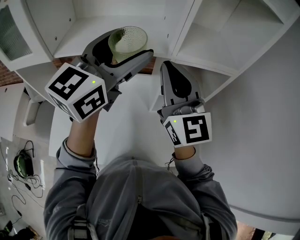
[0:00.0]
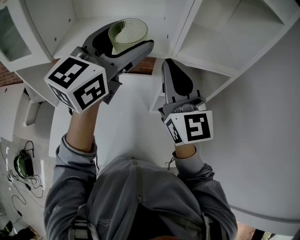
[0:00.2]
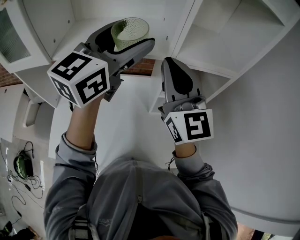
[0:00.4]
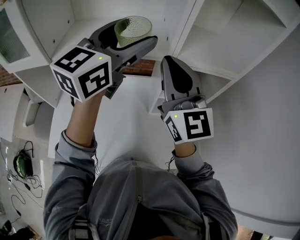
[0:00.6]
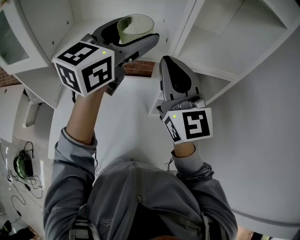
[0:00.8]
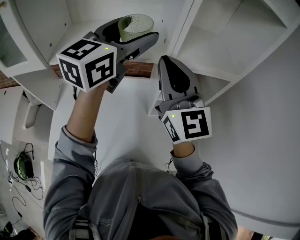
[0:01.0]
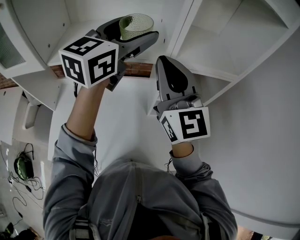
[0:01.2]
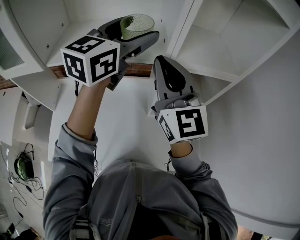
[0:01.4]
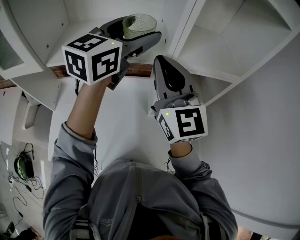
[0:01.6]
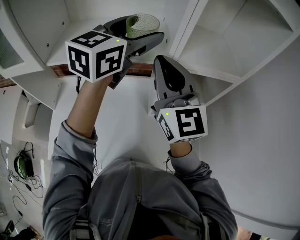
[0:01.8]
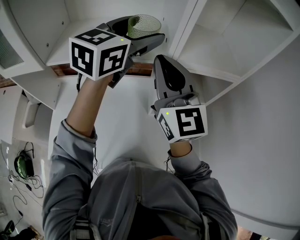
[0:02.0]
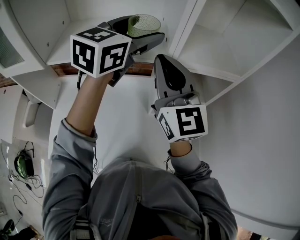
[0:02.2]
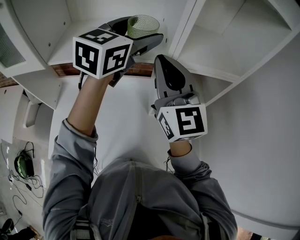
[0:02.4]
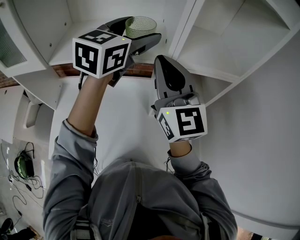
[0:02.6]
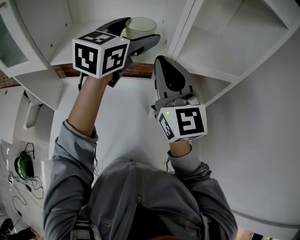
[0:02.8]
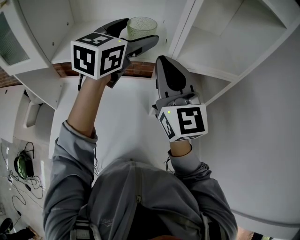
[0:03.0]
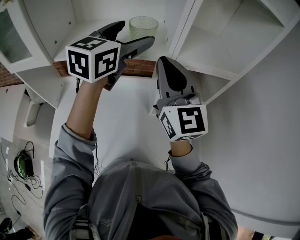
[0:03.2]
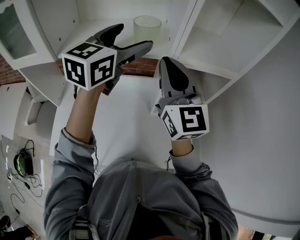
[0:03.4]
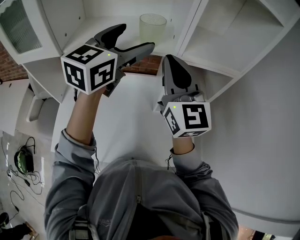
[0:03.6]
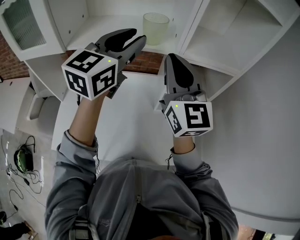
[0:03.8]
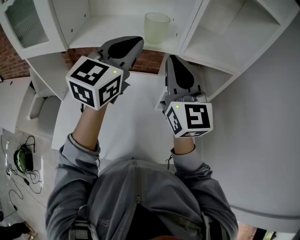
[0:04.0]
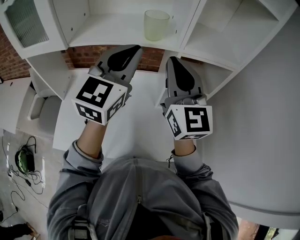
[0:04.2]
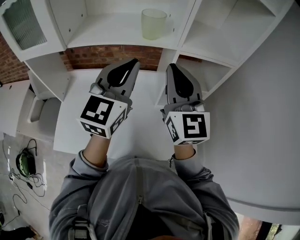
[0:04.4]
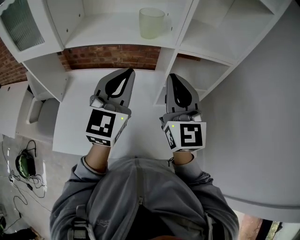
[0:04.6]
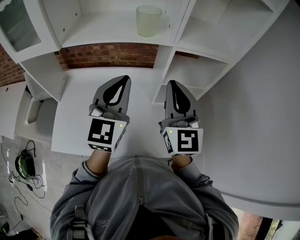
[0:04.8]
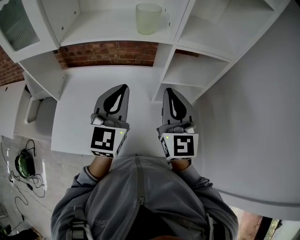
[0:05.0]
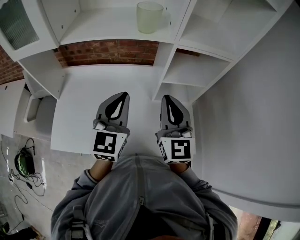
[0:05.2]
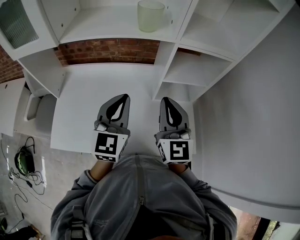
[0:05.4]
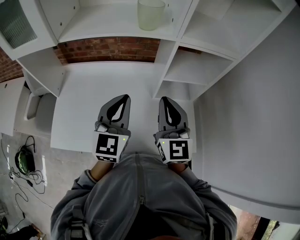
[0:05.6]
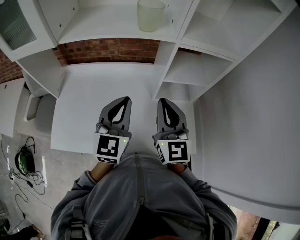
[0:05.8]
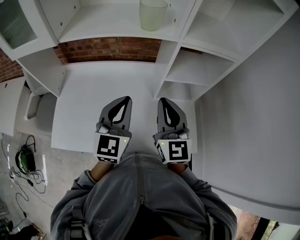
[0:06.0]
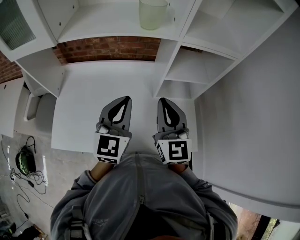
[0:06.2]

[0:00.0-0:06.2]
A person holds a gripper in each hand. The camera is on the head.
0:00.0 to 0:01.6: The left gripper is displaced forward by roughly 10 cm. Meanwhile the right gripper moves roughly 5 cm.
0:01.6 to 0:03.2: The grippers stay close to where they were, moving slightly.
0:03.2 to 0:04.6: The left gripper shifts roughly 20 cm backward and downward, and closes up. The right gripper moves backward, approximately 10 cm.
0:04.6 to 0:06.2: Both grippers move downward, some 10 cm.

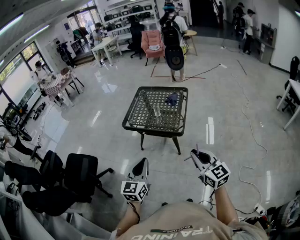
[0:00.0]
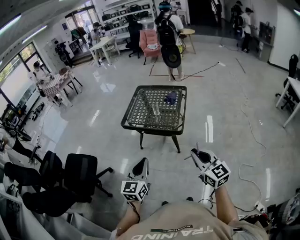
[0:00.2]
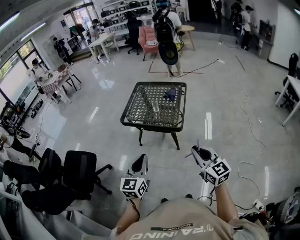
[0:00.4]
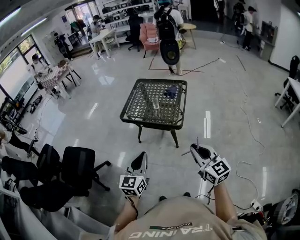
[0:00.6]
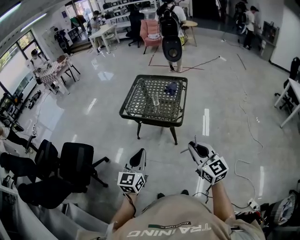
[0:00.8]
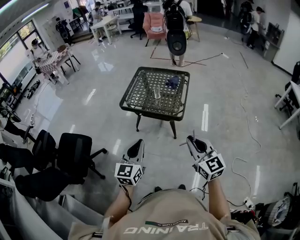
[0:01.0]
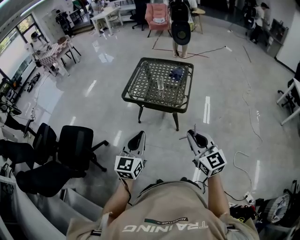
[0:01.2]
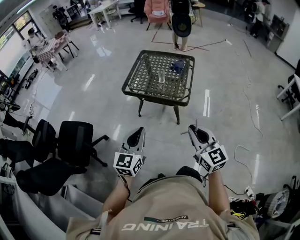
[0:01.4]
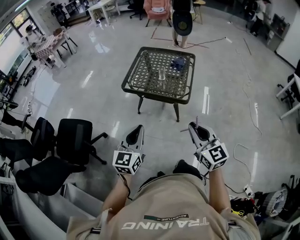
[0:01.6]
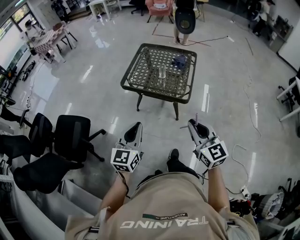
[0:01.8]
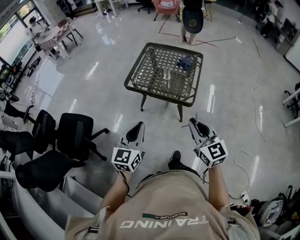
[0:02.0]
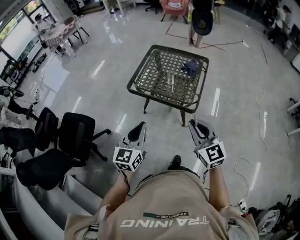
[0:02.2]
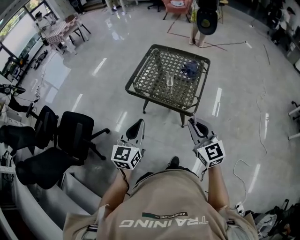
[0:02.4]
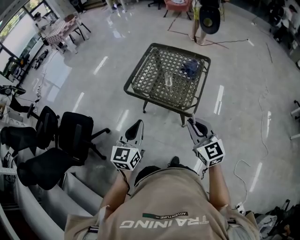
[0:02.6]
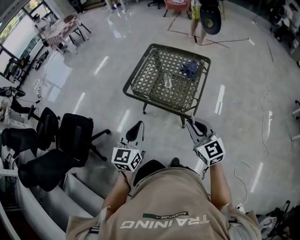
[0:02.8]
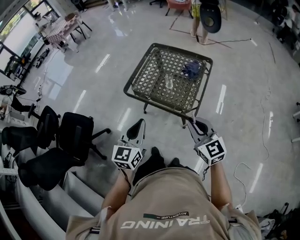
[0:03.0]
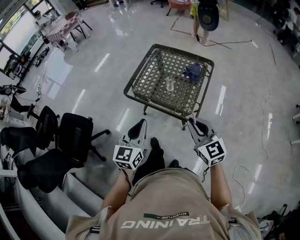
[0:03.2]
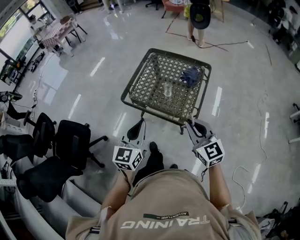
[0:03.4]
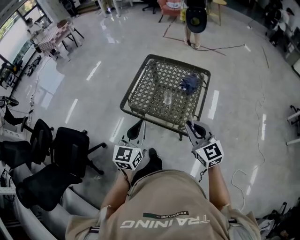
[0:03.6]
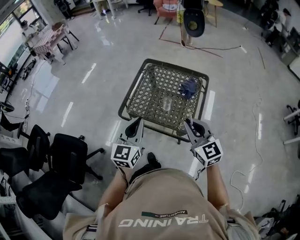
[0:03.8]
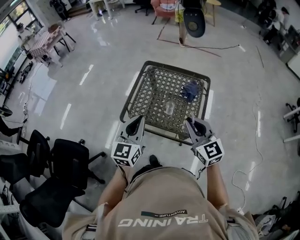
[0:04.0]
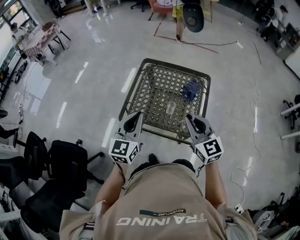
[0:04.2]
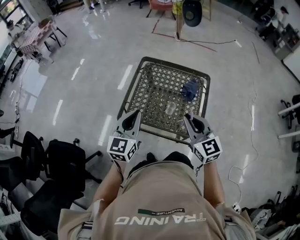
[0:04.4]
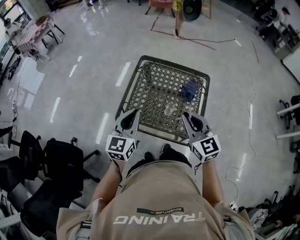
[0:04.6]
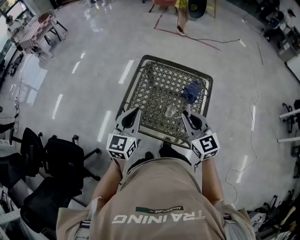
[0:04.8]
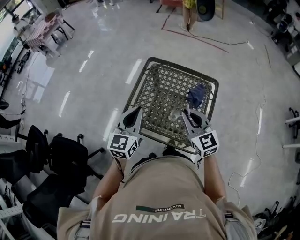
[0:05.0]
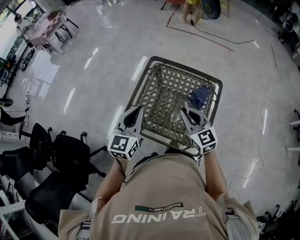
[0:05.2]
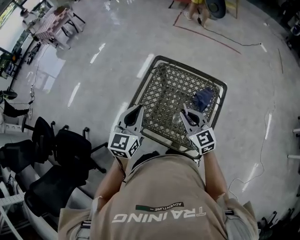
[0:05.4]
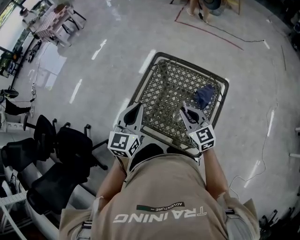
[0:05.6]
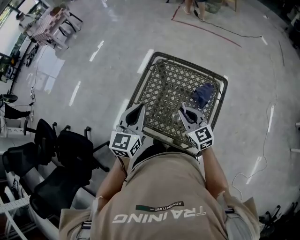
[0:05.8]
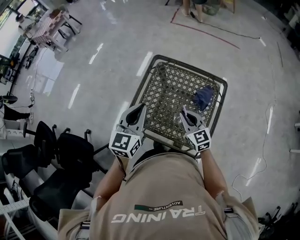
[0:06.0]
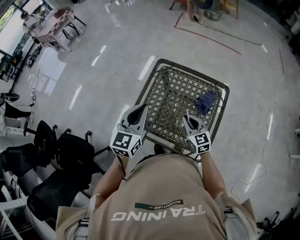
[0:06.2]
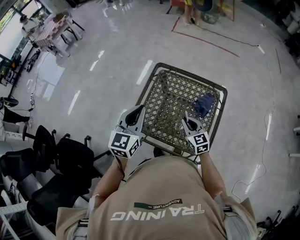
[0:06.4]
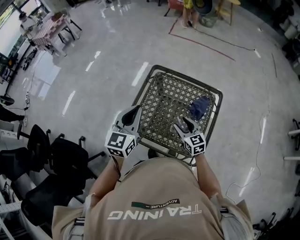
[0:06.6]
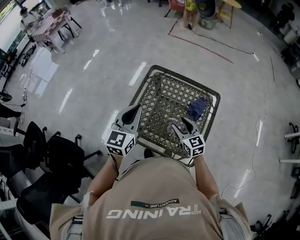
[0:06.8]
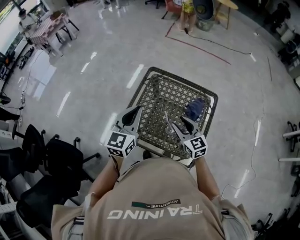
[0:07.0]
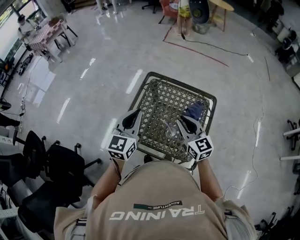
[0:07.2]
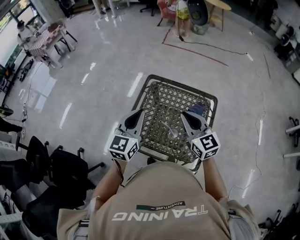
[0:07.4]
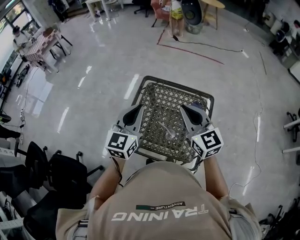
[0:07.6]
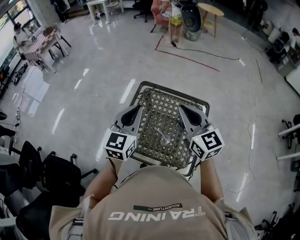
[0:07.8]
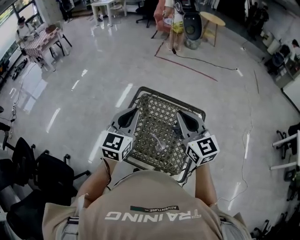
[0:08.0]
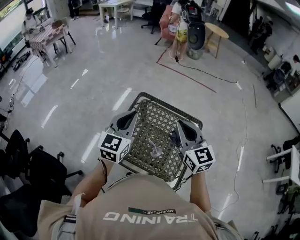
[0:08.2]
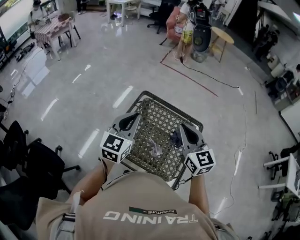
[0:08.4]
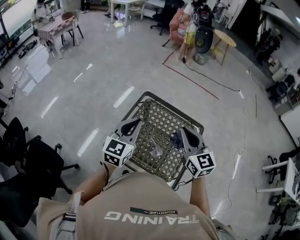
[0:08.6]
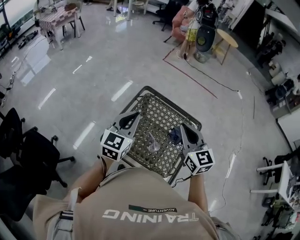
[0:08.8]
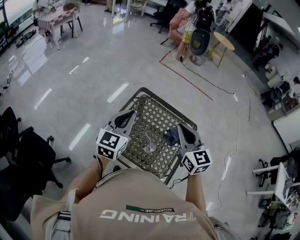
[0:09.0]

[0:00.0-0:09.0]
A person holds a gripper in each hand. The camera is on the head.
0:00.0 to 0:01.6: The grippers both shift to the left by approximately 10 cm.
0:01.6 to 0:03.0: The left gripper goes roughly 20 cm forward and to the right. The right gripper heads forward, covering about 20 cm.
0:03.0 to 0:04.4: Both grippers travel together forward, some 25 cm.
0:04.4 to 0:06.0: The right gripper shifts roughly 20 cm forward and downward, while the left gripper is displaced forward by approximately 10 cm.
0:06.0 to 0:07.6: The left gripper moves upward, about 5 cm. Meanwhile the right gripper travels upward by approximately 20 cm, and opens and closes again.
0:07.6 to 0:09.0: The grippers make only small movements.

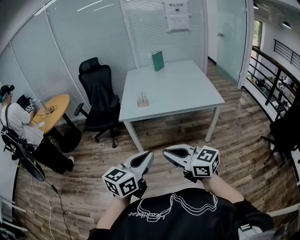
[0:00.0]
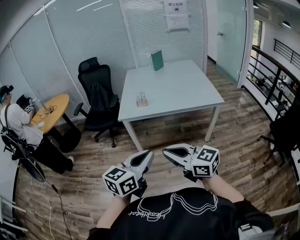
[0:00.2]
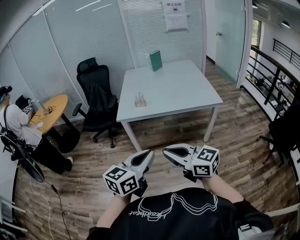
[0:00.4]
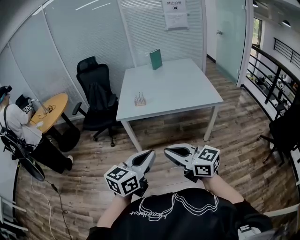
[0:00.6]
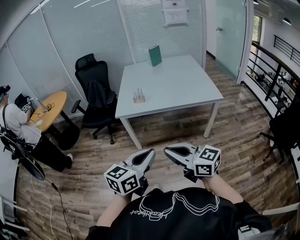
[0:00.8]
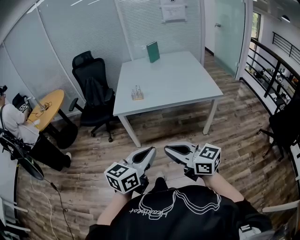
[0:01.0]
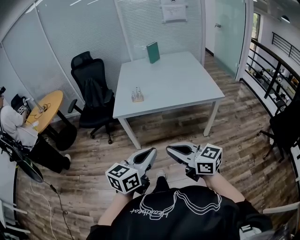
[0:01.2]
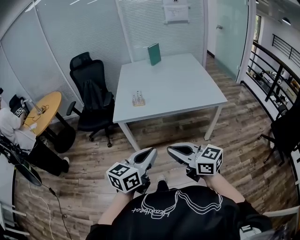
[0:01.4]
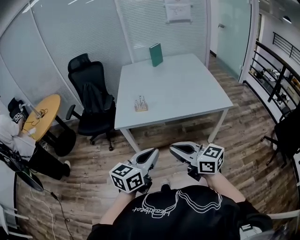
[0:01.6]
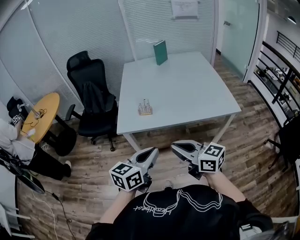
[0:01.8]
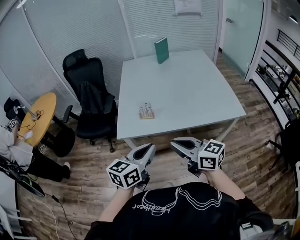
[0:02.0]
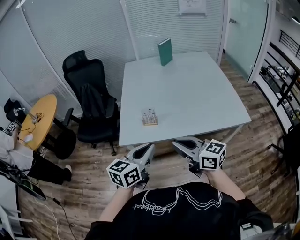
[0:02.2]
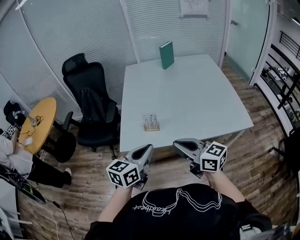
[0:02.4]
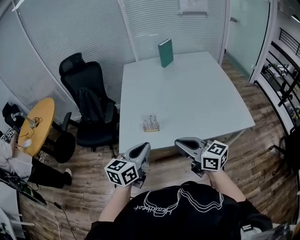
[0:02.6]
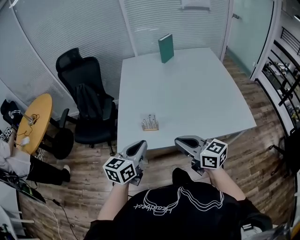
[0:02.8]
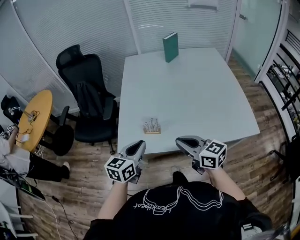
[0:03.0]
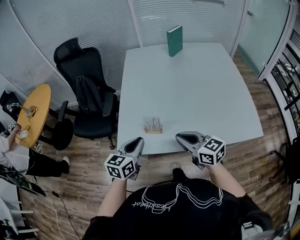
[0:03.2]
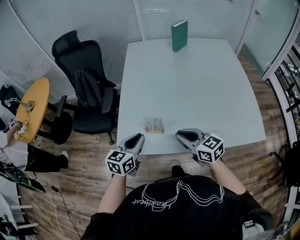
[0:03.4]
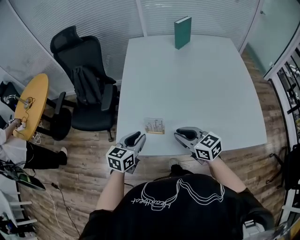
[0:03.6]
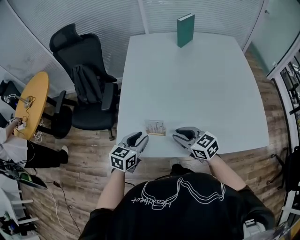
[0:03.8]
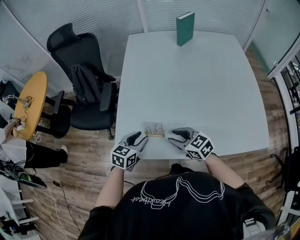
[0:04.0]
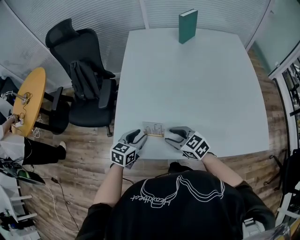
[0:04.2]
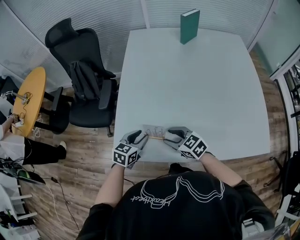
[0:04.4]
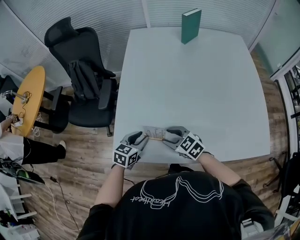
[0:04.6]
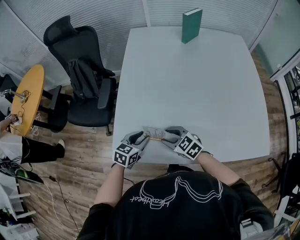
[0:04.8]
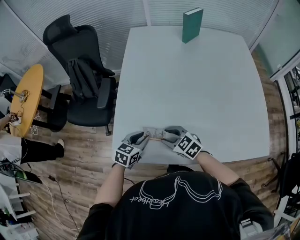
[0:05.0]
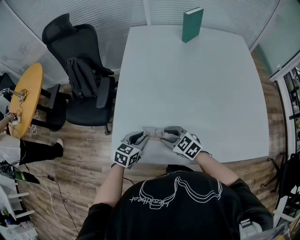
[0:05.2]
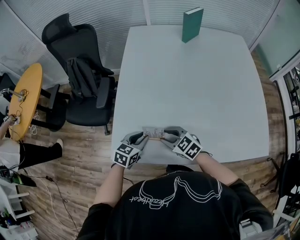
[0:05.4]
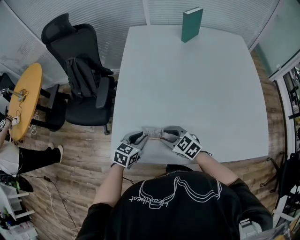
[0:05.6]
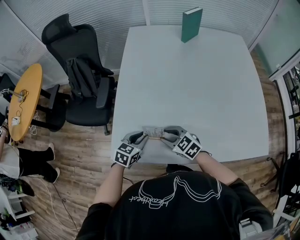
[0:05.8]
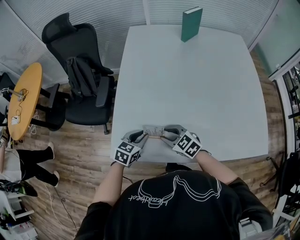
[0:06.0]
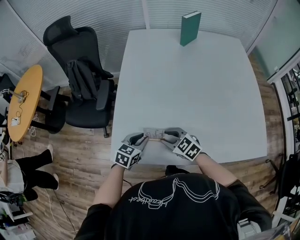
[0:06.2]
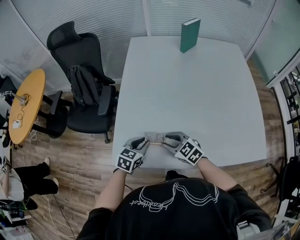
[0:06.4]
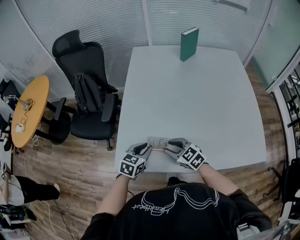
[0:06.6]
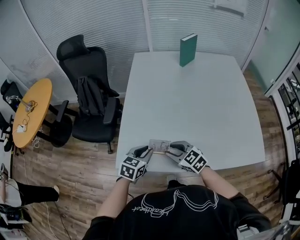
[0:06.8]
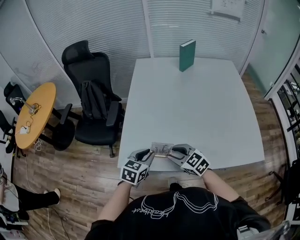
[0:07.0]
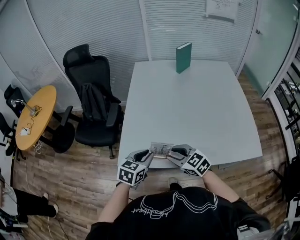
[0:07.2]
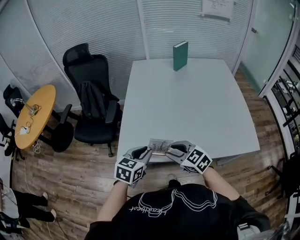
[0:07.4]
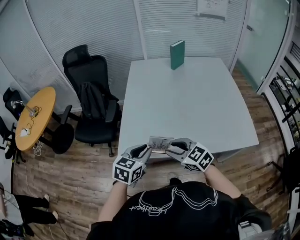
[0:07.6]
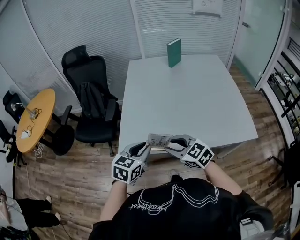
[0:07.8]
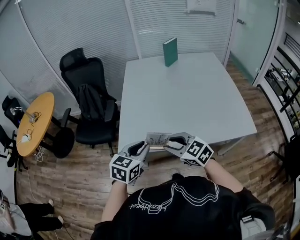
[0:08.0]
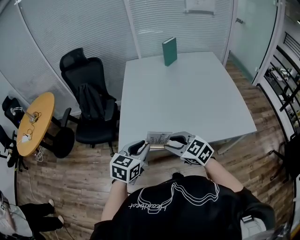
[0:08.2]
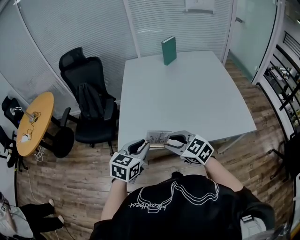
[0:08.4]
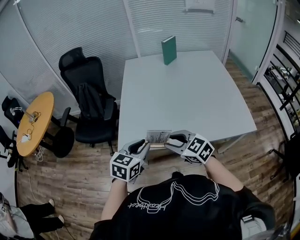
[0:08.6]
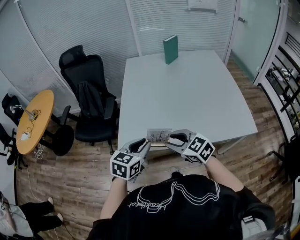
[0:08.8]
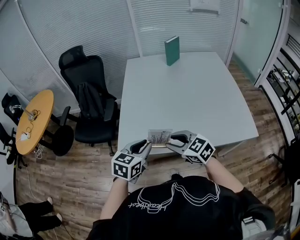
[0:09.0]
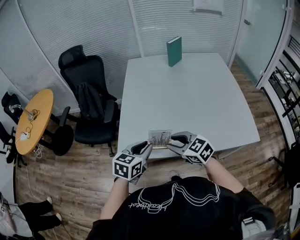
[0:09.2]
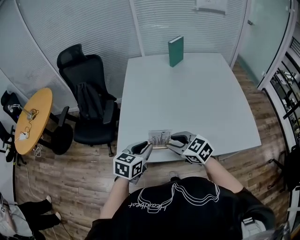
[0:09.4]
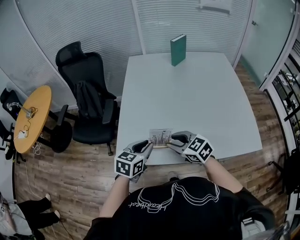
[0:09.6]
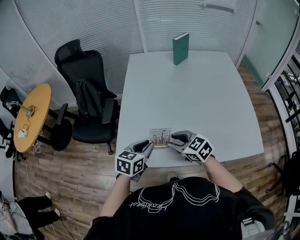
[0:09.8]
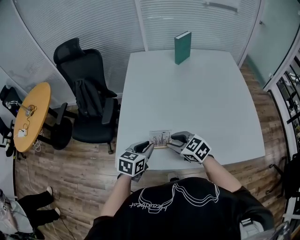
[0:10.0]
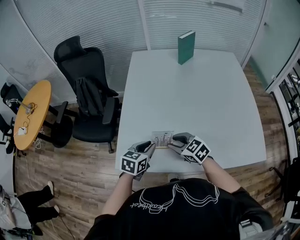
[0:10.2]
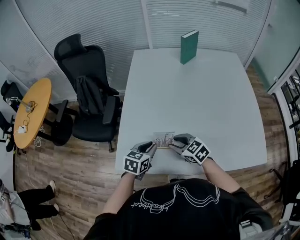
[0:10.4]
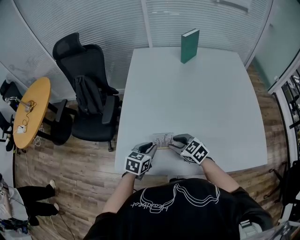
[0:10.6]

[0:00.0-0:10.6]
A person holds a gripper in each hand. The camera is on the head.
0:00.0 to 0:01.6: Both grippers move forward, approximately 20 cm.
0:01.6 to 0:03.0: Both grippers move forward, about 35 cm.
0:03.0 to 0:04.6: Both grippers travel together downward and forward, about 25 cm. The right gripper rotates some 30 degrees, and opens its fingers; the left gripper opens its fingers.
0:04.6 to 0:06.0: The grippers make only small movements.
0:06.0 to 0:07.6: Both grippers travel together upward and backward, about 25 cm.
0:07.6 to 0:09.0: The grippers move only a little.
0:09.0 to 0:10.6: Both grippers travel together forward and downward, roughly 20 cm.
